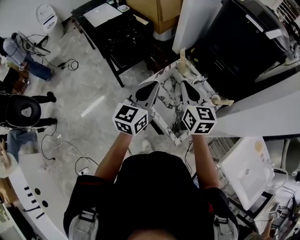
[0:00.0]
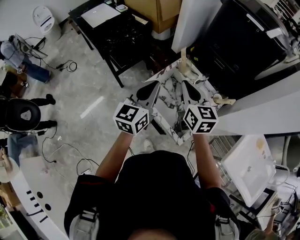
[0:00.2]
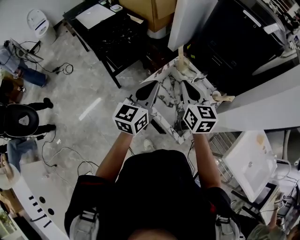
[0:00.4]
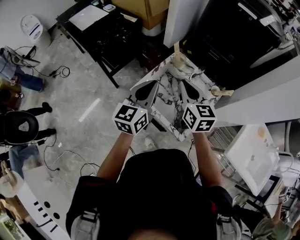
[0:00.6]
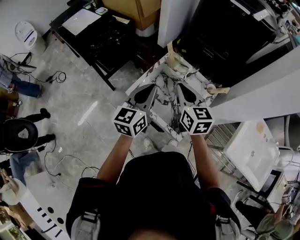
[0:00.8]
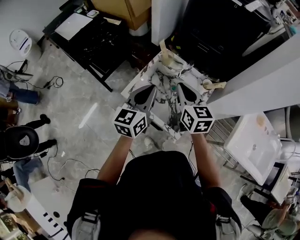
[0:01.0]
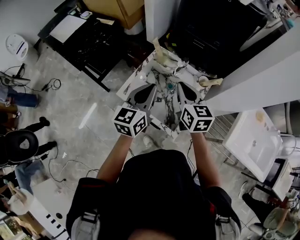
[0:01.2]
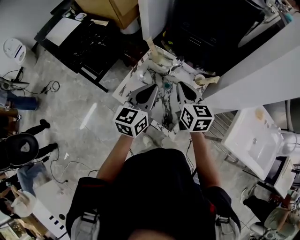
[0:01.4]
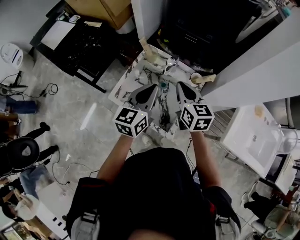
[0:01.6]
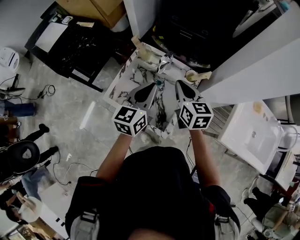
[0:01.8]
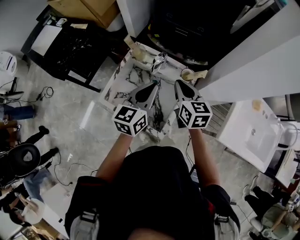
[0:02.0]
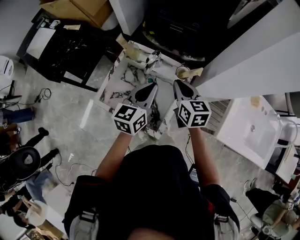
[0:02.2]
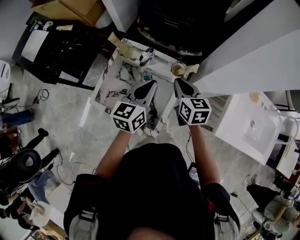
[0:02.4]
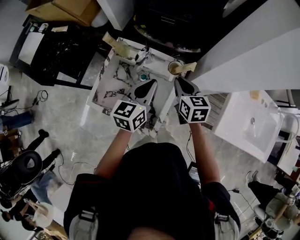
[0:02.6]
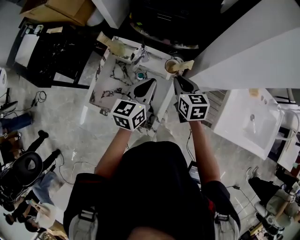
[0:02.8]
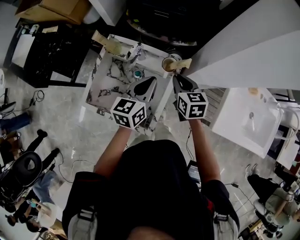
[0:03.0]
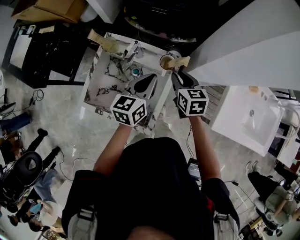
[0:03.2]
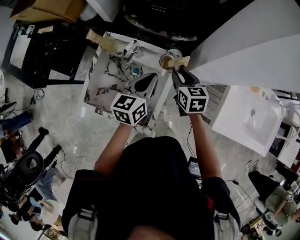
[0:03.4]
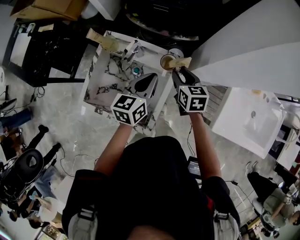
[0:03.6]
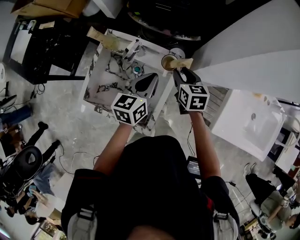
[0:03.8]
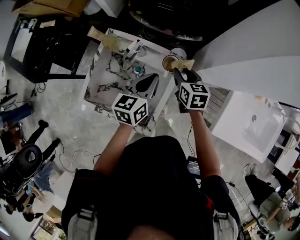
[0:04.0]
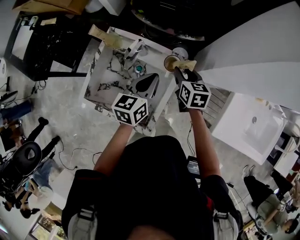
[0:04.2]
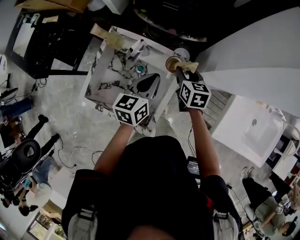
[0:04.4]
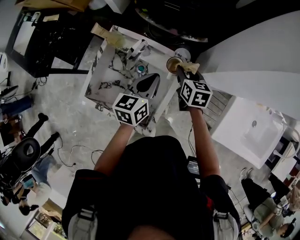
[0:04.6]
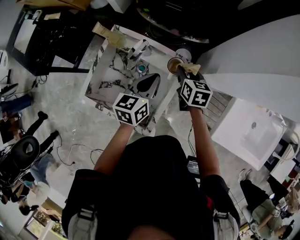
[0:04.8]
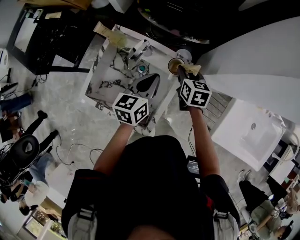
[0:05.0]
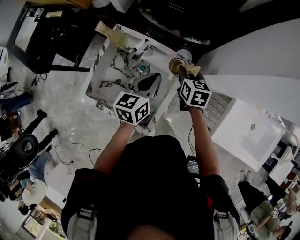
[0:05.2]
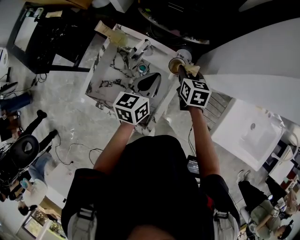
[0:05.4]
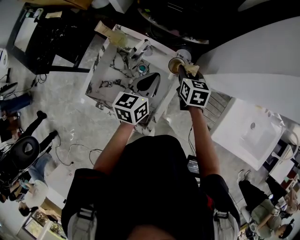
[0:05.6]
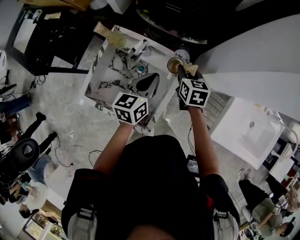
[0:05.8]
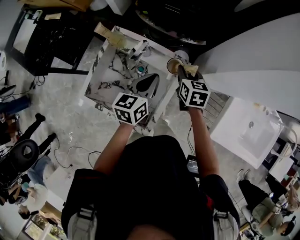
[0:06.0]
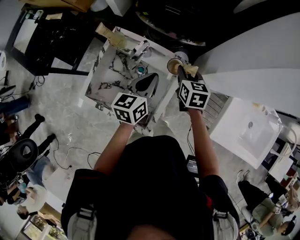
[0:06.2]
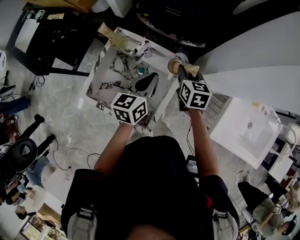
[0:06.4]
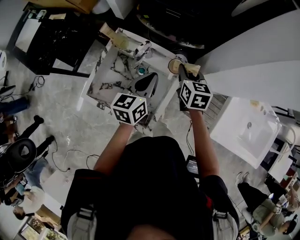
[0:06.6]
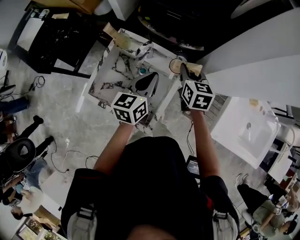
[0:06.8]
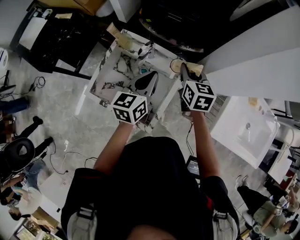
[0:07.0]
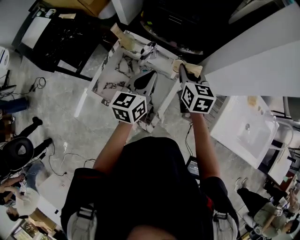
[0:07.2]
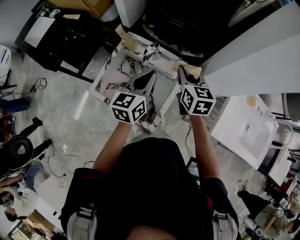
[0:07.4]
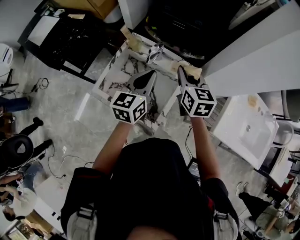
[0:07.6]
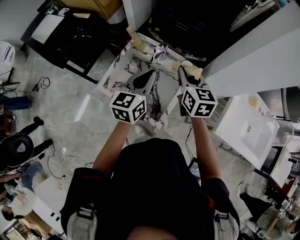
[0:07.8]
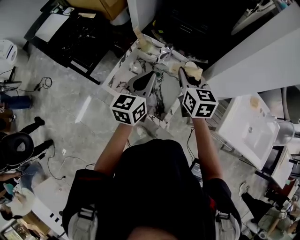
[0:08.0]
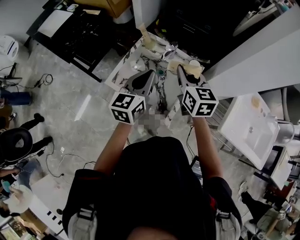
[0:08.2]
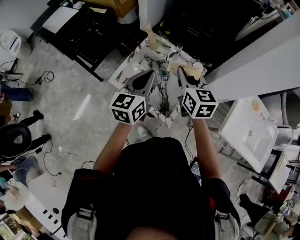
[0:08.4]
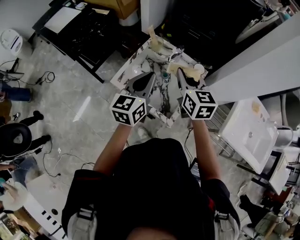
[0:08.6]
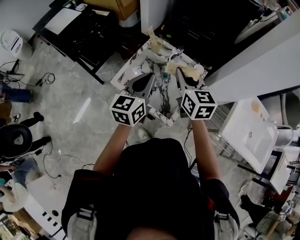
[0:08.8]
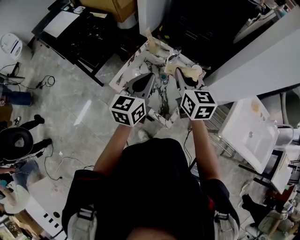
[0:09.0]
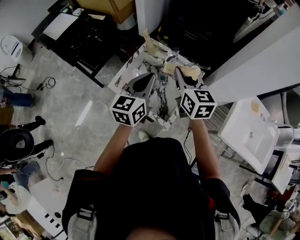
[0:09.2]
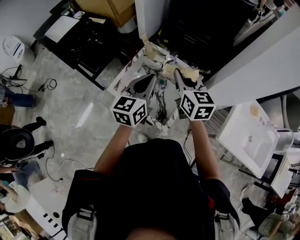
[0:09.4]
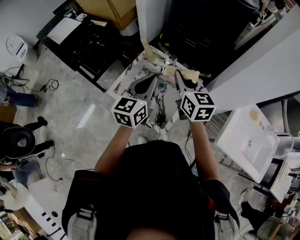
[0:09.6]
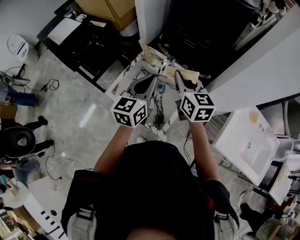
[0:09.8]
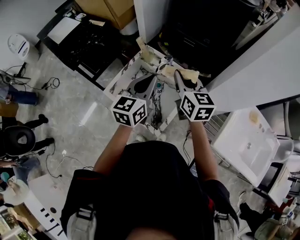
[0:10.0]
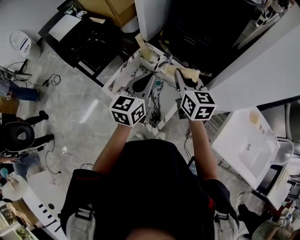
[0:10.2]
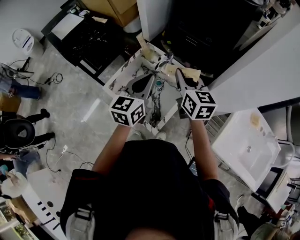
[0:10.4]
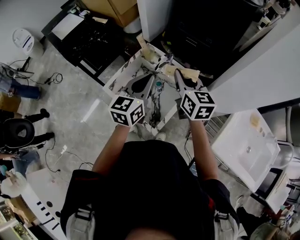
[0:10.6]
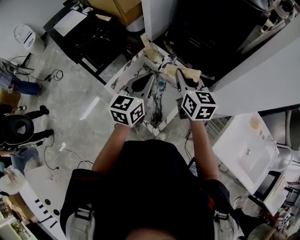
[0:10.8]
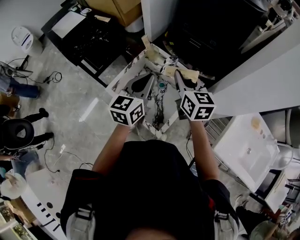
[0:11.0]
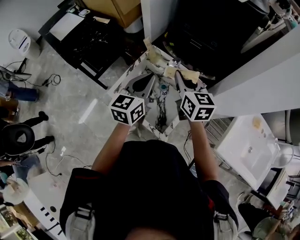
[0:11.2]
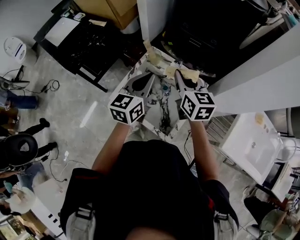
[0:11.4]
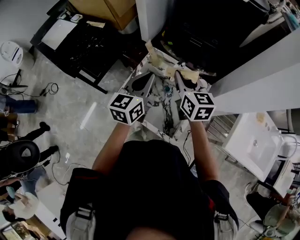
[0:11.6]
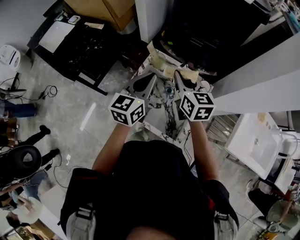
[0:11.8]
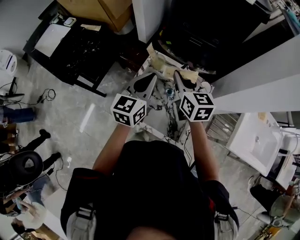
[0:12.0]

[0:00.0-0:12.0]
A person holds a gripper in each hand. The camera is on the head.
0:00.0 to 0:01.6: The two grippers go some 15 cm to the right and downward.
0:01.6 to 0:03.0: Both grippers move to the right, downward and forward, some 20 cm.
0:03.0 to 0:04.4: The right gripper shifts approximately 10 cm forward and downward, and opens.
0:04.4 to 0:06.0: The grippers stay close to where they were, moving slightly.
0:06.0 to 0:07.6: The left gripper goes approximately 15 cm upward, backward and to the left. The right gripper shifts about 20 cm upward and backward.
0:07.6 to 0:09.0: The grippers both shift to the left and backward by some 10 cm.
0:09.0 to 0:10.4: Both grippers move to the right, approximately 10 cm.
0:10.4 to 0:12.0: The right gripper is displaced to the left and forward by roughly 15 cm. The left gripper is displaced forward and to the left by roughly 15 cm.

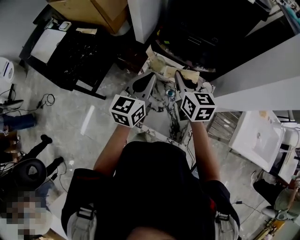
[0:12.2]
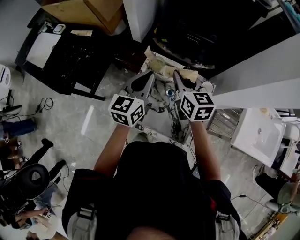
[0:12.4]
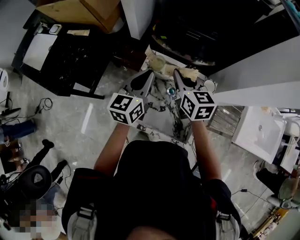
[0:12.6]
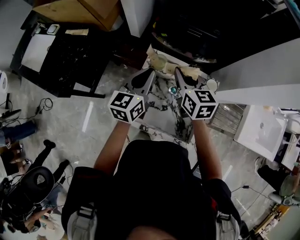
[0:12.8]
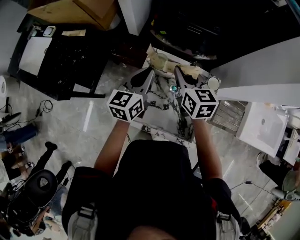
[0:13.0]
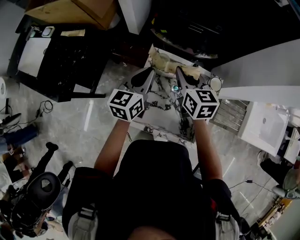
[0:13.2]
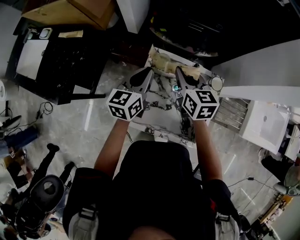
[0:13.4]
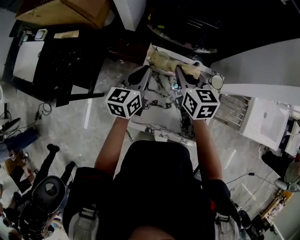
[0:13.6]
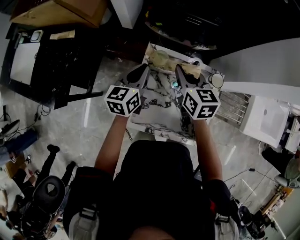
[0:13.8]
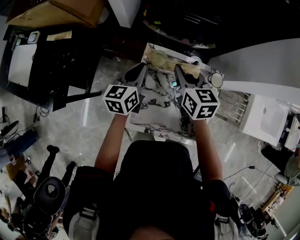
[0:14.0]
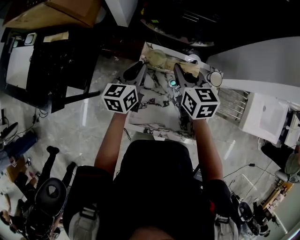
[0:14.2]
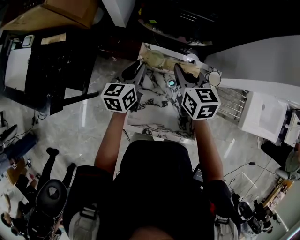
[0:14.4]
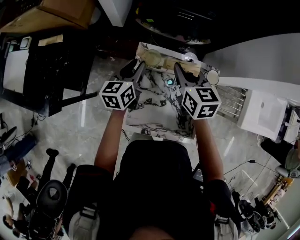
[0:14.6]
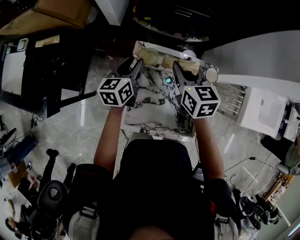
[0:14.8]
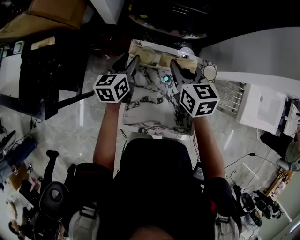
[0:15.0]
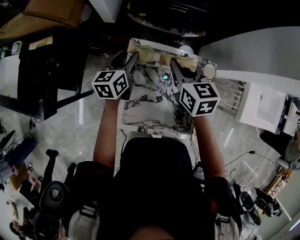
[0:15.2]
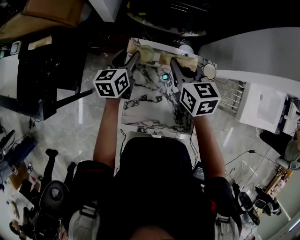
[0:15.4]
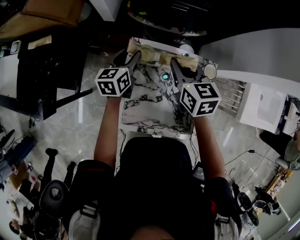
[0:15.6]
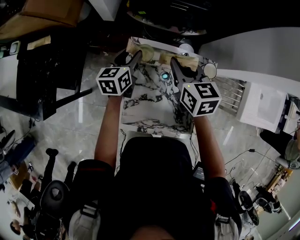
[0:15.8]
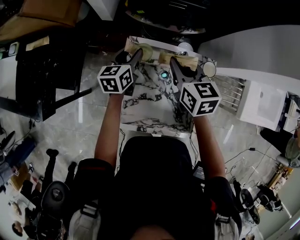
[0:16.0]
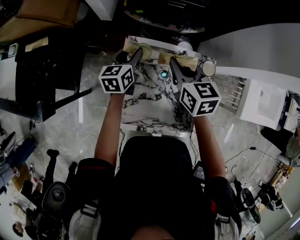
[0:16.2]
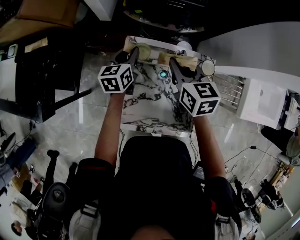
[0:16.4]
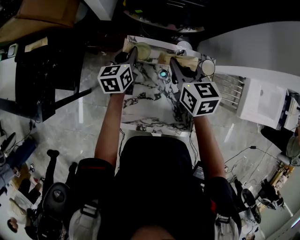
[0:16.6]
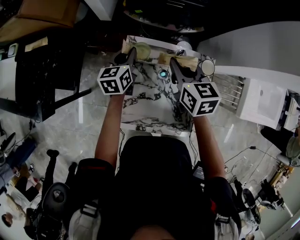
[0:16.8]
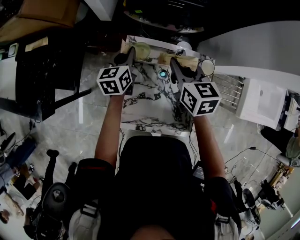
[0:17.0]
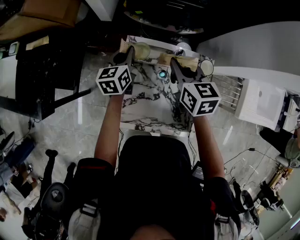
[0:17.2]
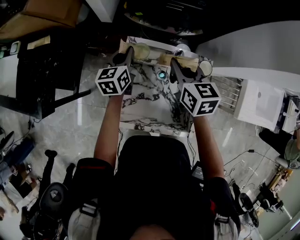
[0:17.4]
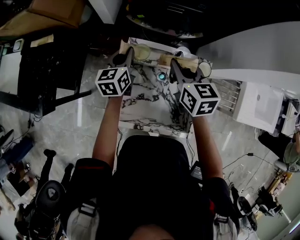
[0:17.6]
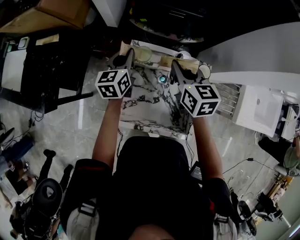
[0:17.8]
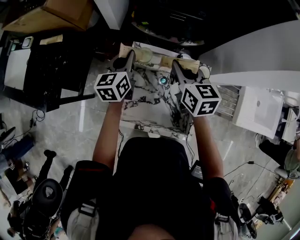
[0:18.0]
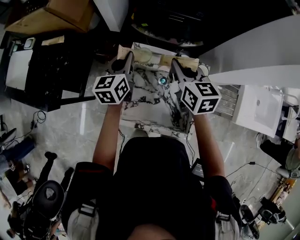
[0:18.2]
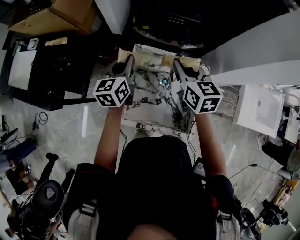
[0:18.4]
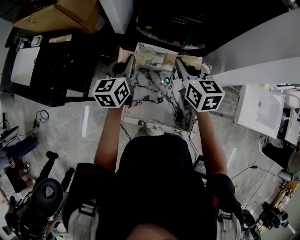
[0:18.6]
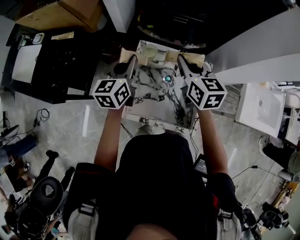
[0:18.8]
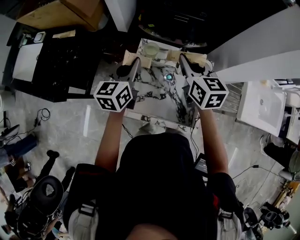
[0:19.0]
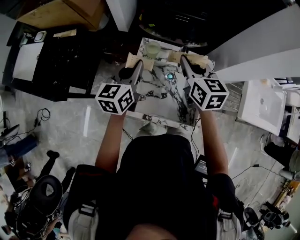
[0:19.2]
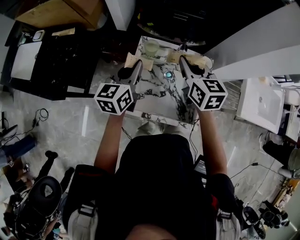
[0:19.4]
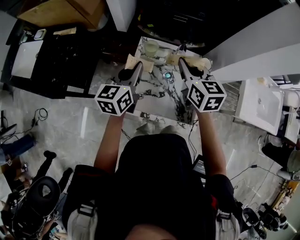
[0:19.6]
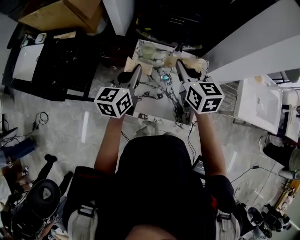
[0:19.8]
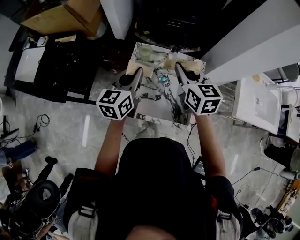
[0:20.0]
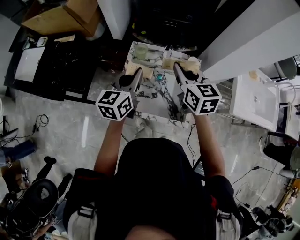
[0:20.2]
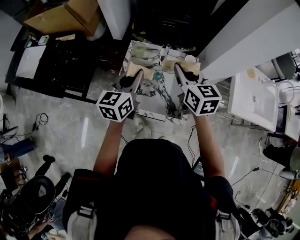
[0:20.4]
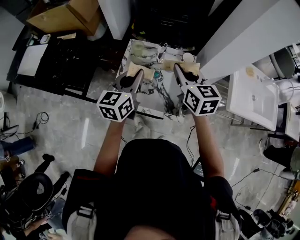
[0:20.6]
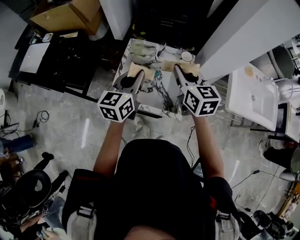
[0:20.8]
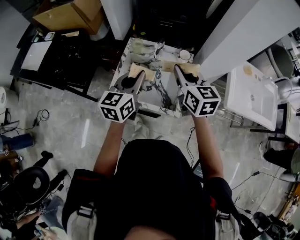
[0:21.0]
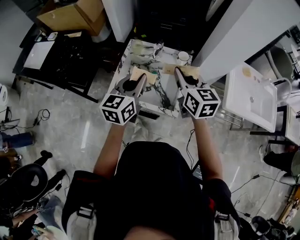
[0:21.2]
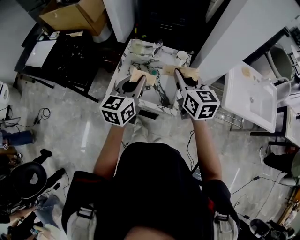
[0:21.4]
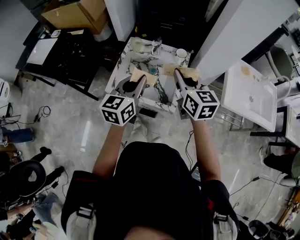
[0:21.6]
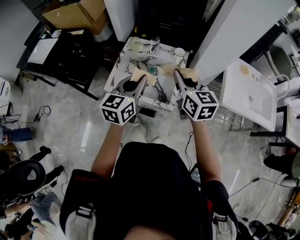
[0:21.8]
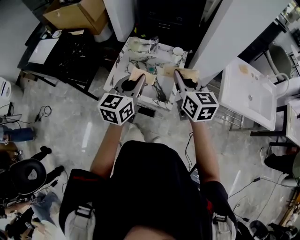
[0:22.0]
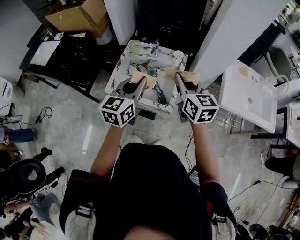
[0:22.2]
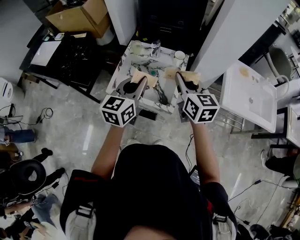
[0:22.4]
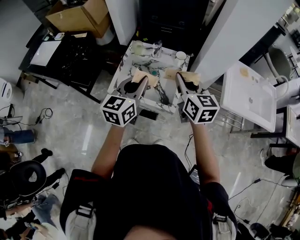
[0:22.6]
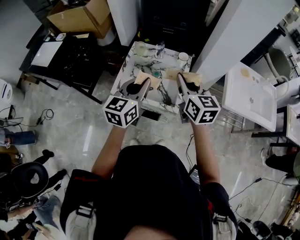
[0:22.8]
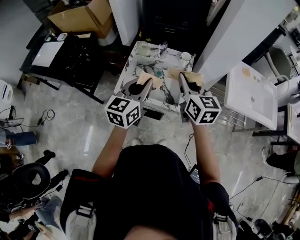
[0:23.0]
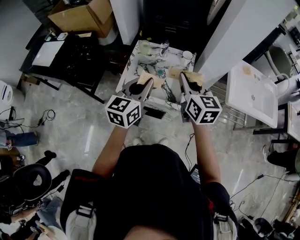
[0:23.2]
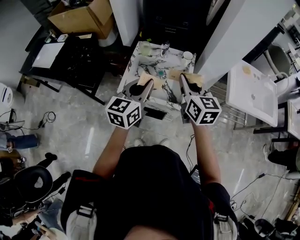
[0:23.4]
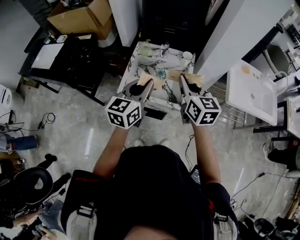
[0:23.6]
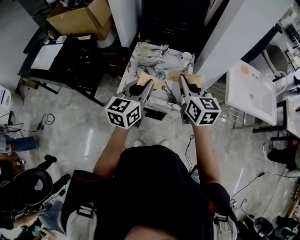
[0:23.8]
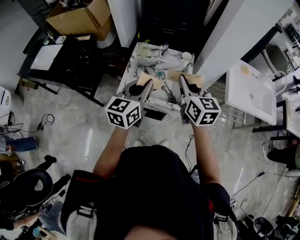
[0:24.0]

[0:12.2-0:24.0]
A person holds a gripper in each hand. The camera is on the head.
0:12.2 to 0:13.6: The left gripper is displaced downward, forward and to the left by some 15 cm; the right gripper travels downward and forward by approximately 10 cm.
0:13.6 to 0:15.2: The left gripper is displaced downward and forward by some 10 cm, and opens up.
0:15.2 to 0:16.6: The left gripper closes.
0:16.6 to 0:18.2: The right gripper shifts approximately 5 cm upward, while the left gripper heads upward, covering some 10 cm.
0:18.2 to 0:19.6: The right gripper travels backward by roughly 5 cm; the left gripper shifts about 10 cm backward.
0:19.6 to 0:21.0: The right gripper shifts some 15 cm backward and to the right. The left gripper is displaced backward, to the right and upward by approximately 20 cm.
0:21.0 to 0:22.6: The two grippers go approximately 10 cm backward.
0:22.6 to 0:24.0: The left gripper ends up some 5 cm from where it was, while the right gripper travels to the left by some 5 cm.
